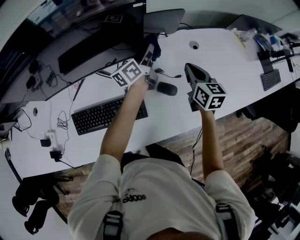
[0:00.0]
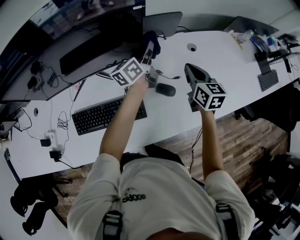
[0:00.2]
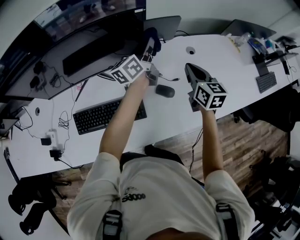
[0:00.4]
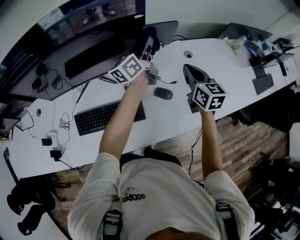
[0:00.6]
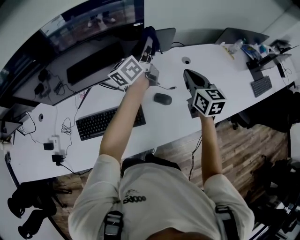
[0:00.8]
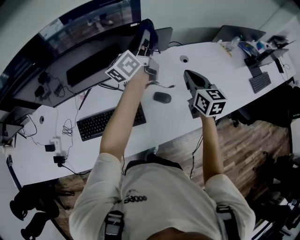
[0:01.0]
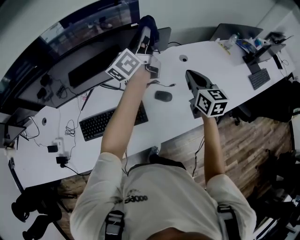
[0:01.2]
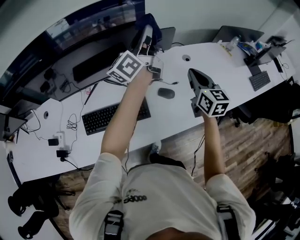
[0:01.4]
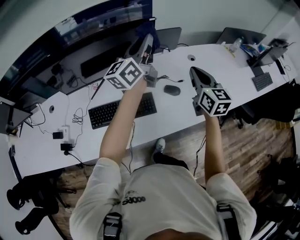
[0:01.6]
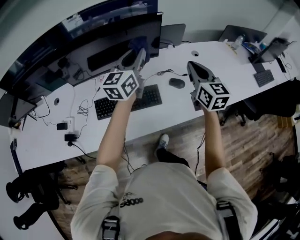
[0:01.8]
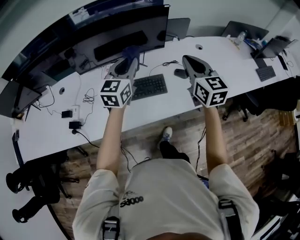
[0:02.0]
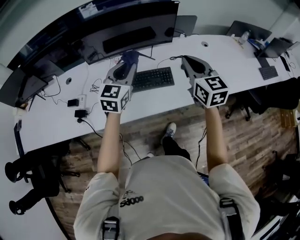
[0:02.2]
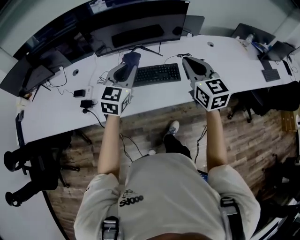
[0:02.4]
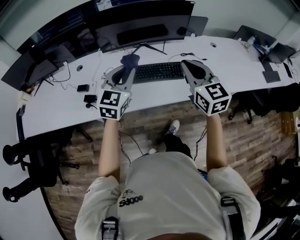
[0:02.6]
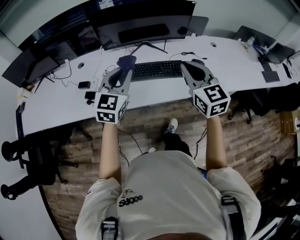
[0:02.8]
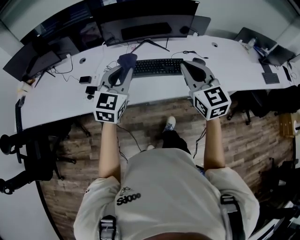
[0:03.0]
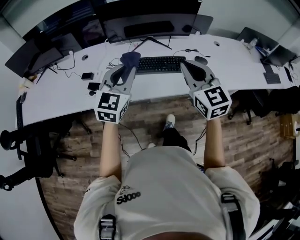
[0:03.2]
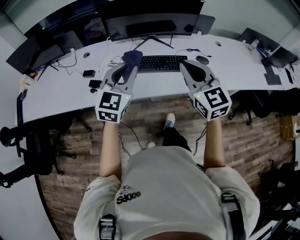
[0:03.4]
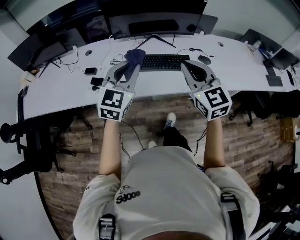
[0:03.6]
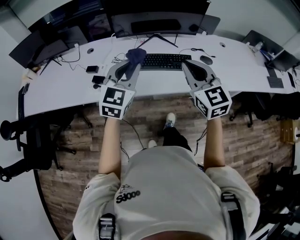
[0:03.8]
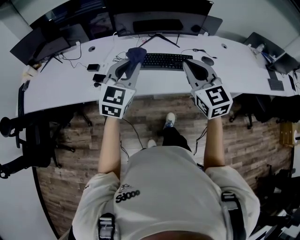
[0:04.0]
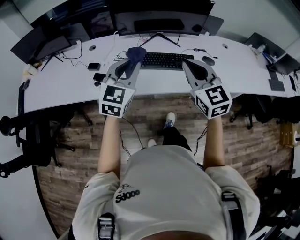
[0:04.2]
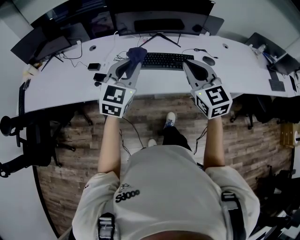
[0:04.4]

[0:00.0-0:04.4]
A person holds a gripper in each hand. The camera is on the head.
0:00.0 to 0:01.4: The right gripper goes roughly 15 cm upward and backward; the left gripper moves upward, approximately 25 cm, and swivels about 30 degrees.
0:01.4 to 0:03.0: The pair of grippers is taken backward and to the left, about 50 cm. The left gripper rolls clockwise, seen from behind, by roughly 60 degrees. The right gripper changes its angle by approximately 30 degrees.
0:03.0 to 0:04.4: The grippers move only a little.

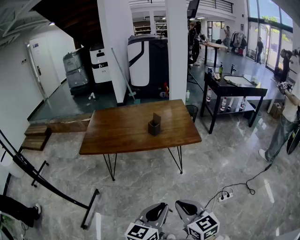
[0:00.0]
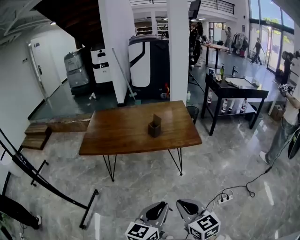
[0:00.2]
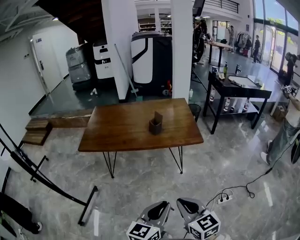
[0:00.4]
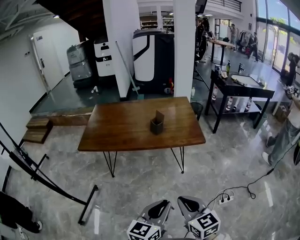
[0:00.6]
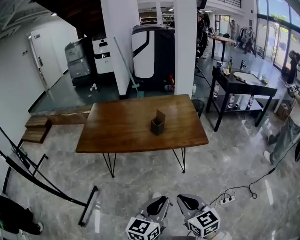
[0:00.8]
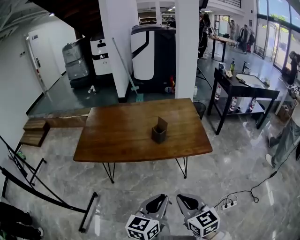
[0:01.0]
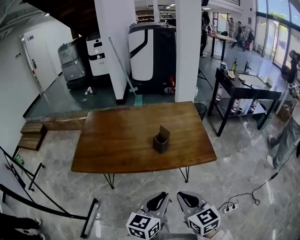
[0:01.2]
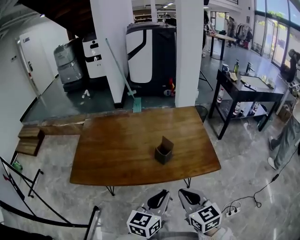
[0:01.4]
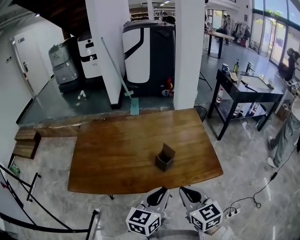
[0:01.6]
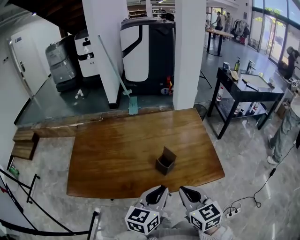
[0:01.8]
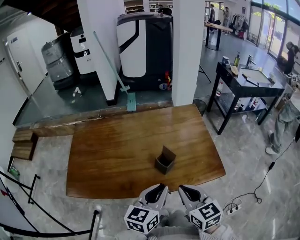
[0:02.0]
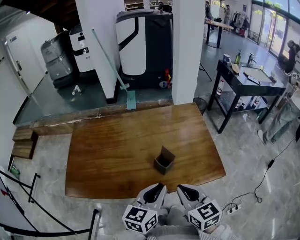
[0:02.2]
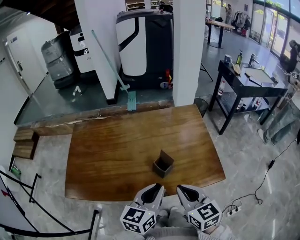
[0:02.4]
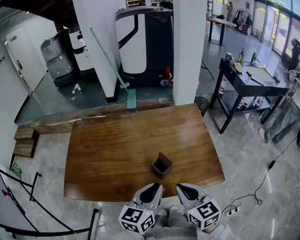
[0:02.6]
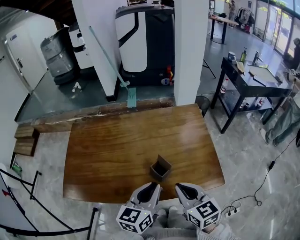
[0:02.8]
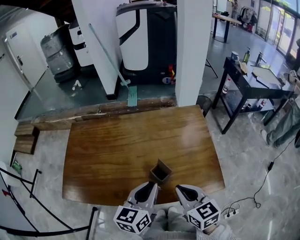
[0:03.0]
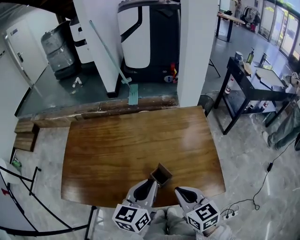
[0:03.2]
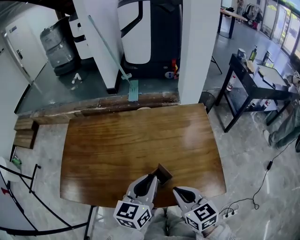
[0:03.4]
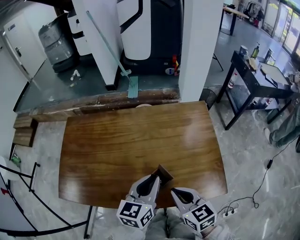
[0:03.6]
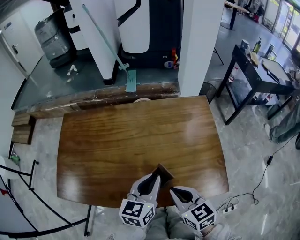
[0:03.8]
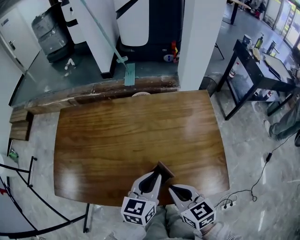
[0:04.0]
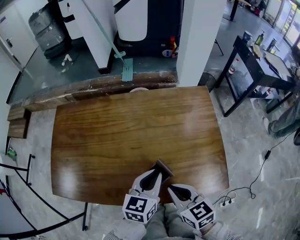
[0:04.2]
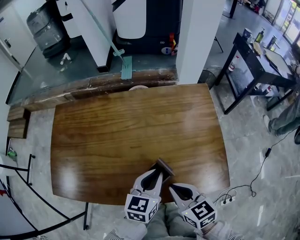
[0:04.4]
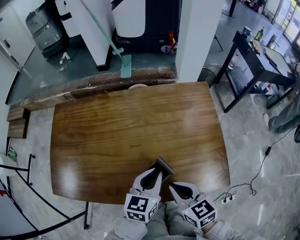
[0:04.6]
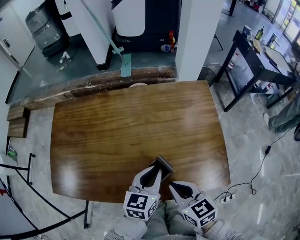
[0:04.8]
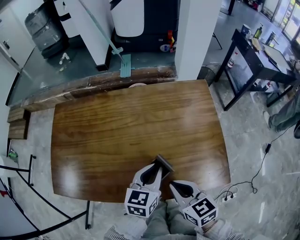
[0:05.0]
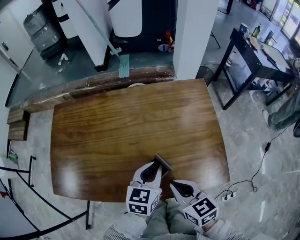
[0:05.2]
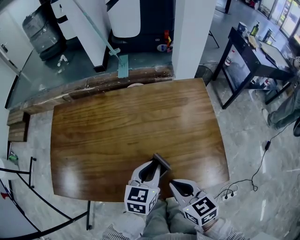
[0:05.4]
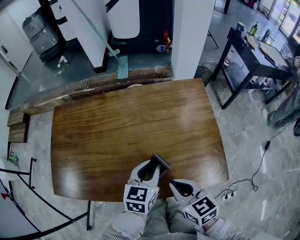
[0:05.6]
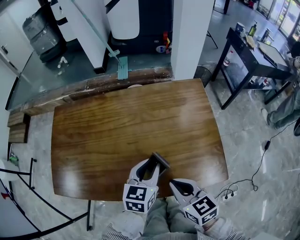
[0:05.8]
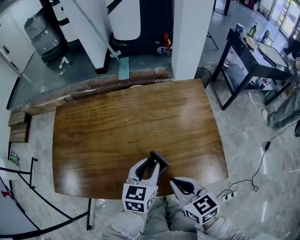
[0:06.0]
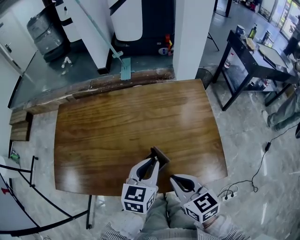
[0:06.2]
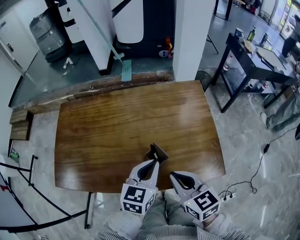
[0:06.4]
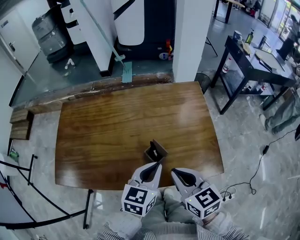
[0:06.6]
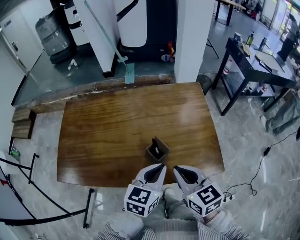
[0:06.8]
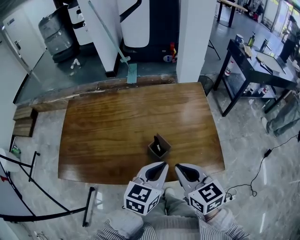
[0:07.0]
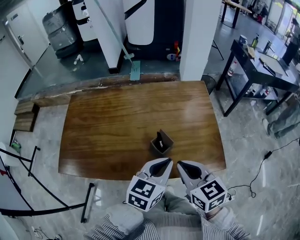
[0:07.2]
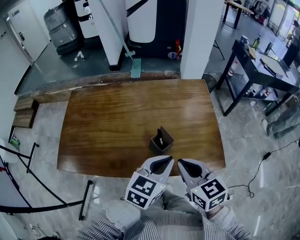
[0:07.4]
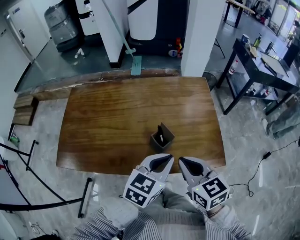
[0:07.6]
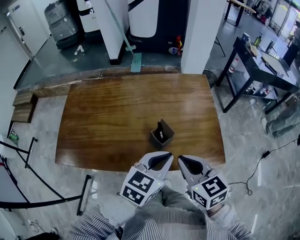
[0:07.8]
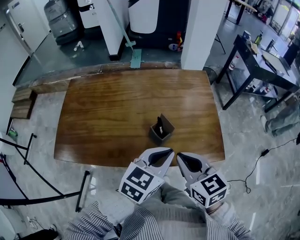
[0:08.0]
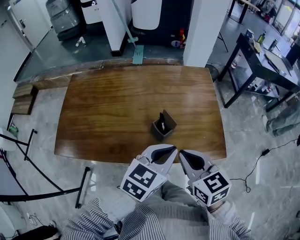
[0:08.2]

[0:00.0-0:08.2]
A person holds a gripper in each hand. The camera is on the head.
0:00.0 to 0:01.6: Both grippers are carried forward, approximately 40 cm.
0:01.6 to 0:03.2: The two grippers go roughly 15 cm forward.
0:03.2 to 0:05.0: The right gripper shifts about 5 cm downward. Meanwhile the left gripper travels downward by approximately 10 cm.
0:05.0 to 0:06.6: The right gripper is displaced upward by some 5 cm. The left gripper travels backward and upward by some 10 cm.
0:06.6 to 0:08.2: The left gripper shifts approximately 5 cm backward.

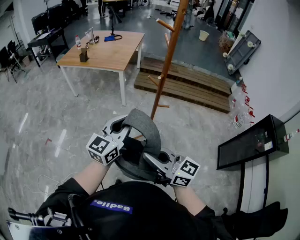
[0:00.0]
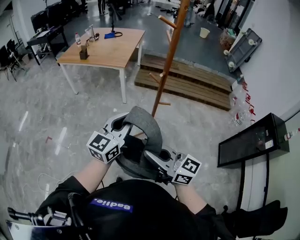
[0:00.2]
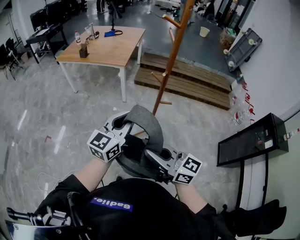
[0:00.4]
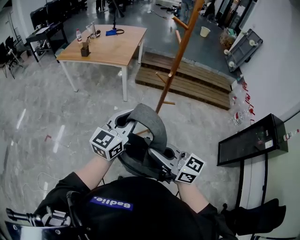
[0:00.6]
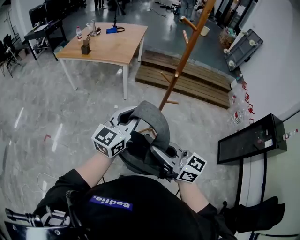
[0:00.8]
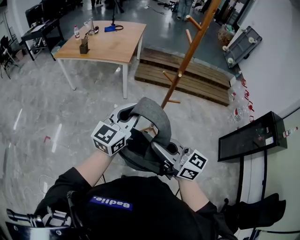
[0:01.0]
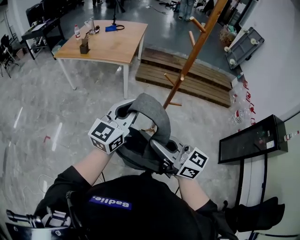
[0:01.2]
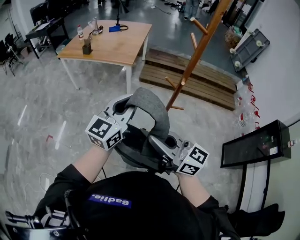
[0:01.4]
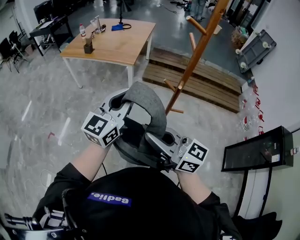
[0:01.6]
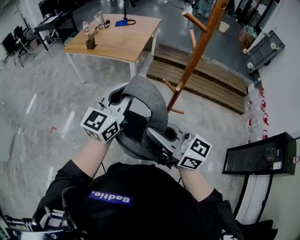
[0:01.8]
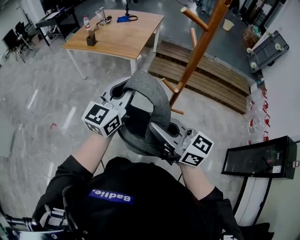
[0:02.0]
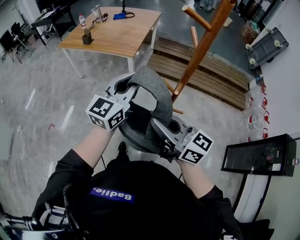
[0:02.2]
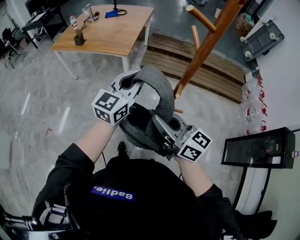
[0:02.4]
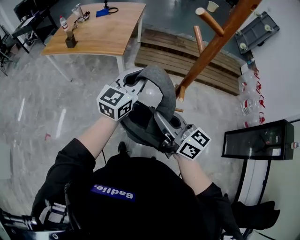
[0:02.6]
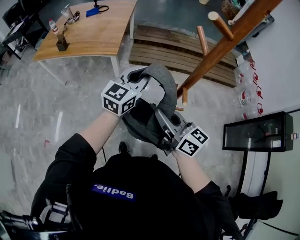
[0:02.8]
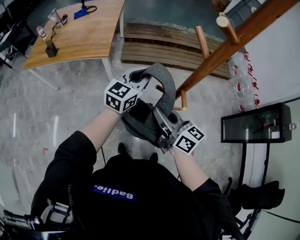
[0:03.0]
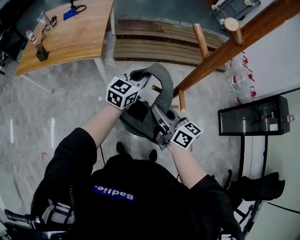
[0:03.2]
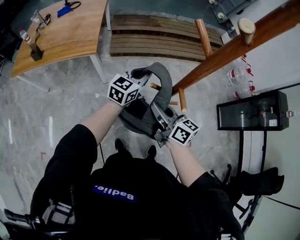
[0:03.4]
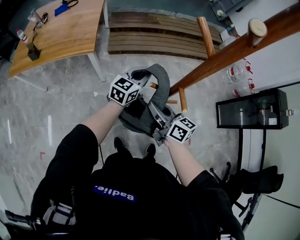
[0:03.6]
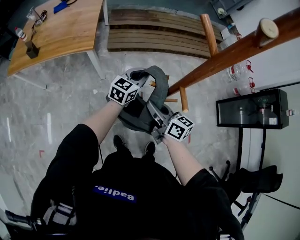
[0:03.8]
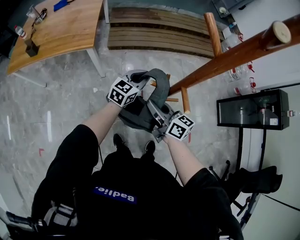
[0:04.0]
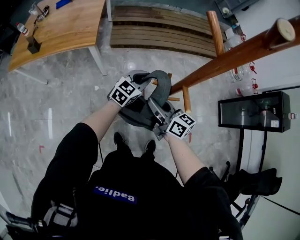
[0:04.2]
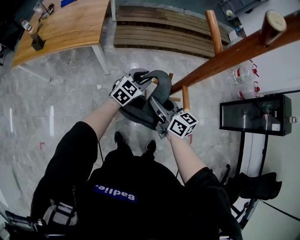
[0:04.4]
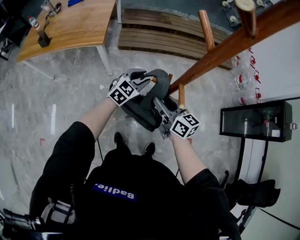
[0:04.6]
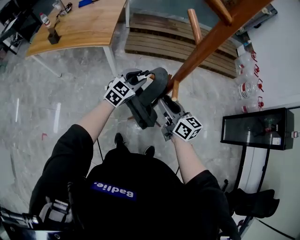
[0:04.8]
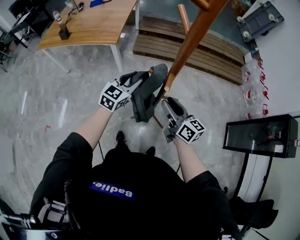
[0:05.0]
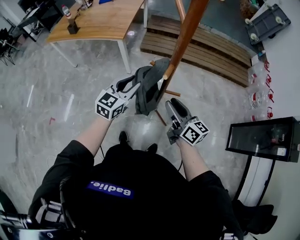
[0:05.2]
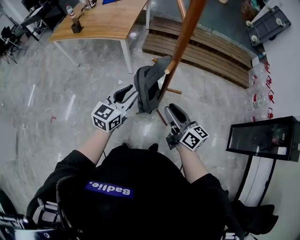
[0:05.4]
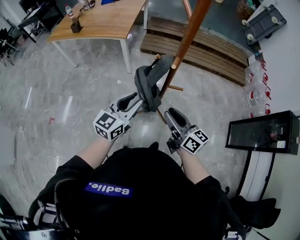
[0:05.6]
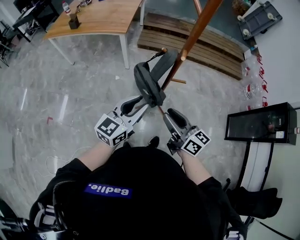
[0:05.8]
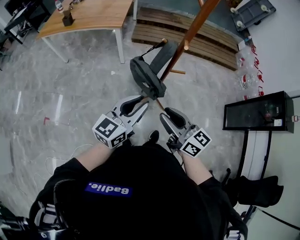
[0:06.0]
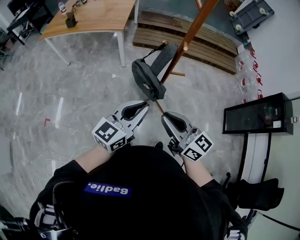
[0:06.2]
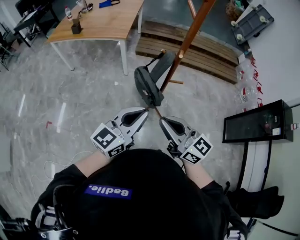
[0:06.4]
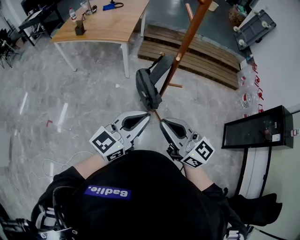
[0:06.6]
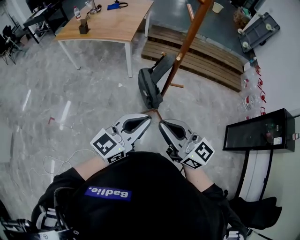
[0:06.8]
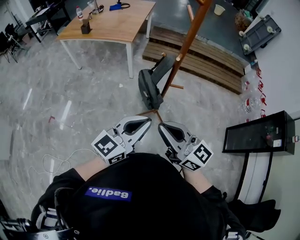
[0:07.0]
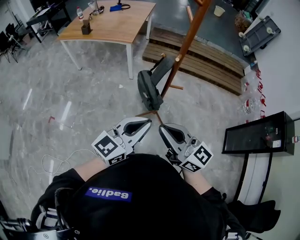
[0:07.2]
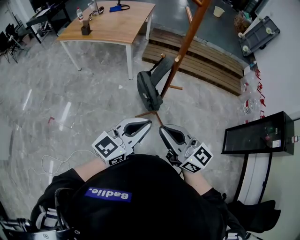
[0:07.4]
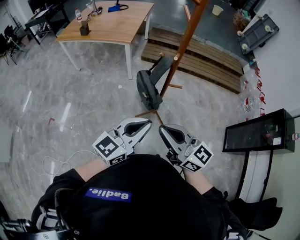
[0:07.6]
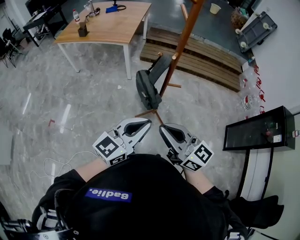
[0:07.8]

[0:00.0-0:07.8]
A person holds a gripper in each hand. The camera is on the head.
0:00.0 to 0:01.6: The grippers both shift forward by about 15 cm.
0:01.6 to 0:03.2: The right gripper shifts by roughly 30 cm, and swivels some 40 degrees; the left gripper ends up approximately 35 cm from where it was, and swivels some 30 degrees.
0:03.2 to 0:04.6: The left gripper shifts approximately 15 cm downward, rotates roughly 20 degrees, and opens up, while the right gripper travels downward by roughly 5 cm, and opens.
0:04.6 to 0:06.2: The right gripper shifts approximately 30 cm backward, turns by roughly 20 degrees, and closes its fingers, while the left gripper heads backward and upward, covering roughly 40 cm, turns by approximately 40 degrees, and closes its fingers.
0:06.2 to 0:07.8: The left gripper shifts approximately 10 cm backward and to the right. Meanwhile the right gripper goes some 5 cm upward.

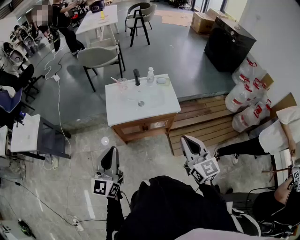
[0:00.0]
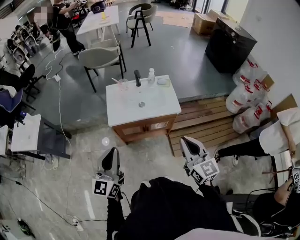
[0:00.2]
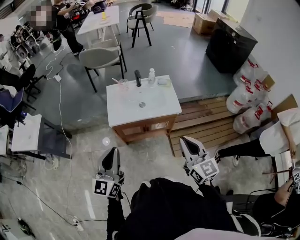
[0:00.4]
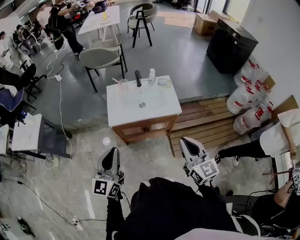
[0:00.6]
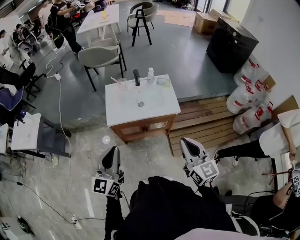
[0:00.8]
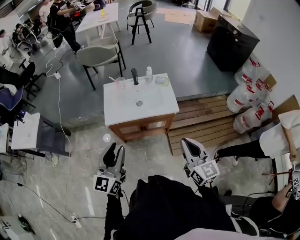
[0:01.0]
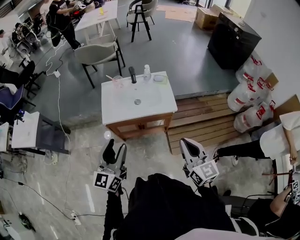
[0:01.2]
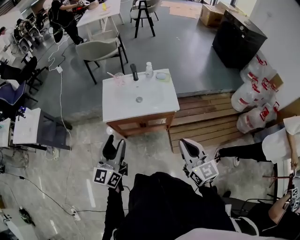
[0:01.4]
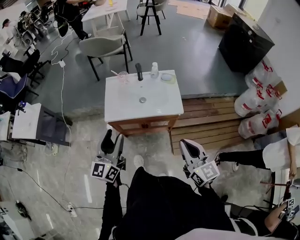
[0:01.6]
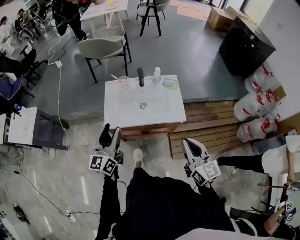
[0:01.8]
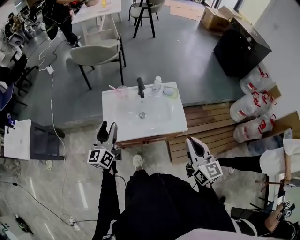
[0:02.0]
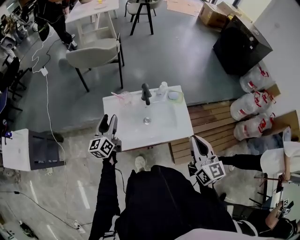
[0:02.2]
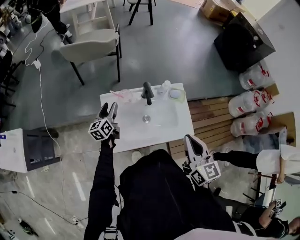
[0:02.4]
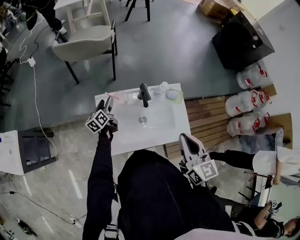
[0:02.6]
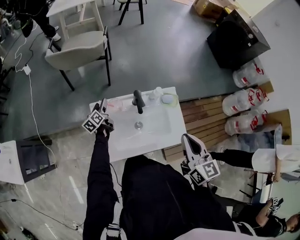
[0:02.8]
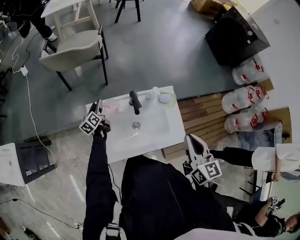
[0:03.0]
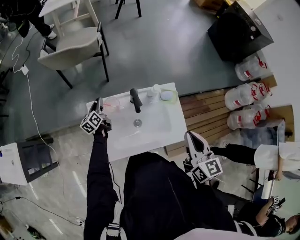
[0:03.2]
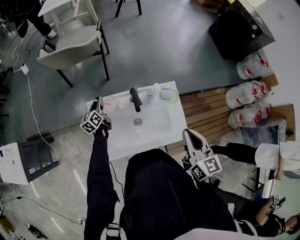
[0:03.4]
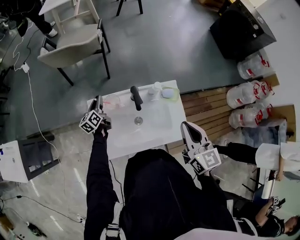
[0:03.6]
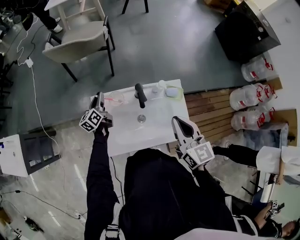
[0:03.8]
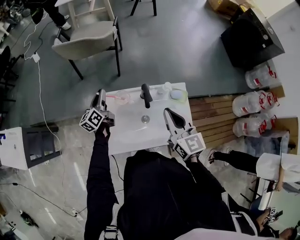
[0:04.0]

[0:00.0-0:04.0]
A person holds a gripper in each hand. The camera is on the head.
0:00.0 to 0:01.4: The right gripper goes some 5 cm to the right. The left gripper is displaced to the right and forward by about 10 cm, and opens.
0:01.4 to 0:02.6: The left gripper is displaced forward and downward by approximately 60 cm, and changes its angle by about 40 degrees. Meanwhile the right gripper travels forward by roughly 35 cm.
0:02.6 to 0:04.0: The left gripper travels upward by some 5 cm, and closes. Meanwhile the right gripper shifts approximately 10 cm forward.
